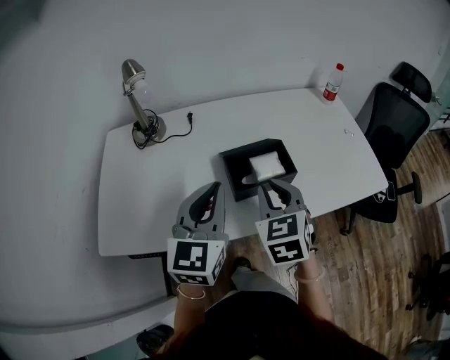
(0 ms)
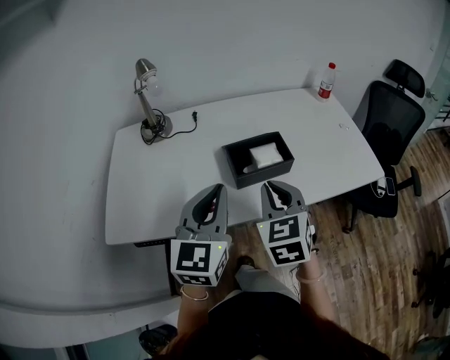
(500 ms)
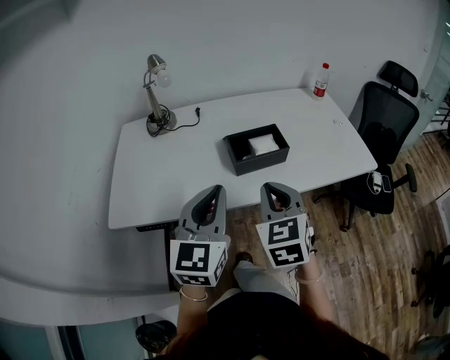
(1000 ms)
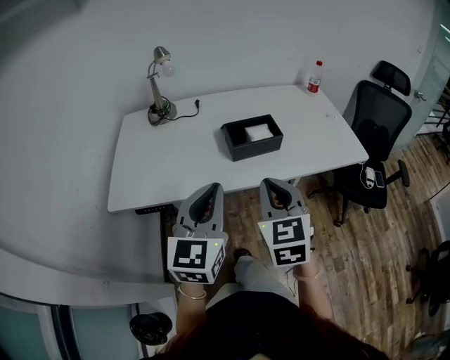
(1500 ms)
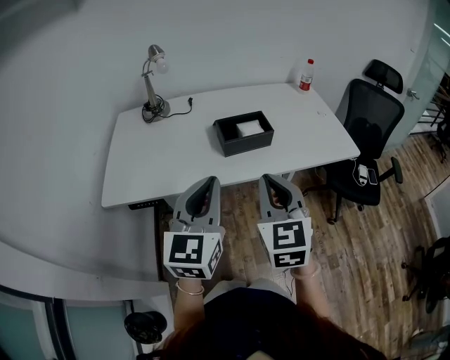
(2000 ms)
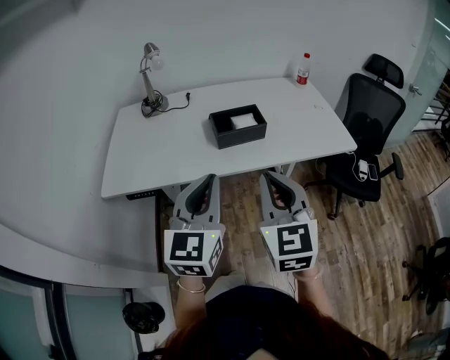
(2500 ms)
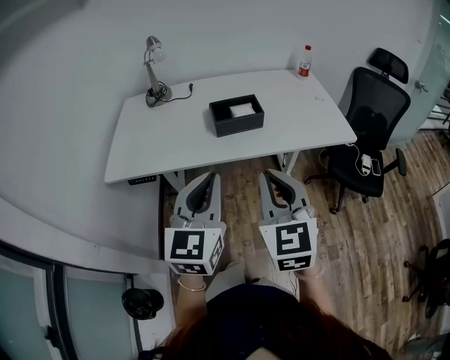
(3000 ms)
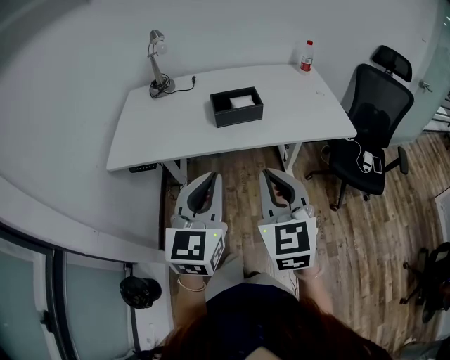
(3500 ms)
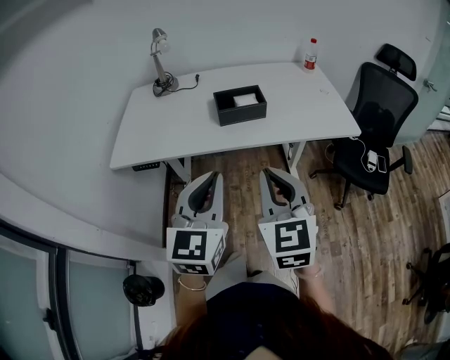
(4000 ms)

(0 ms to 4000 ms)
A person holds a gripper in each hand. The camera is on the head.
0 ms - 2000 ms: Both grippers travel together backward, some 20 cm.
2000 ms - 4000 ms: The grippers both shift backward and to the right by some 15 cm.

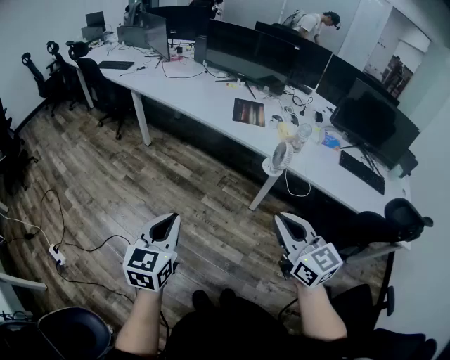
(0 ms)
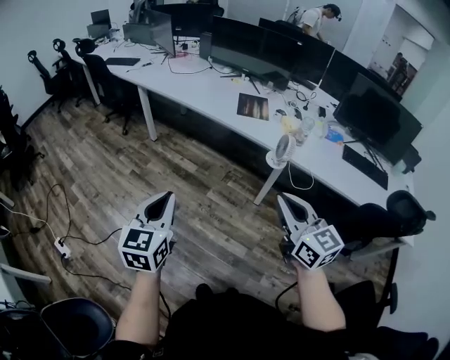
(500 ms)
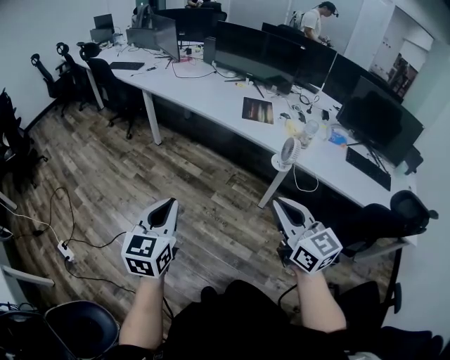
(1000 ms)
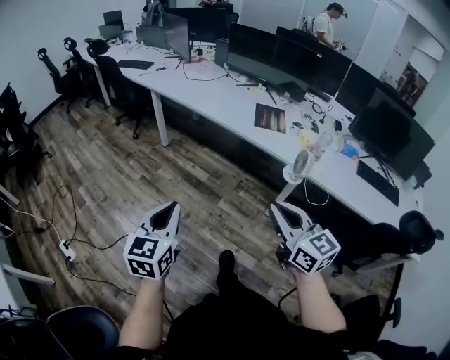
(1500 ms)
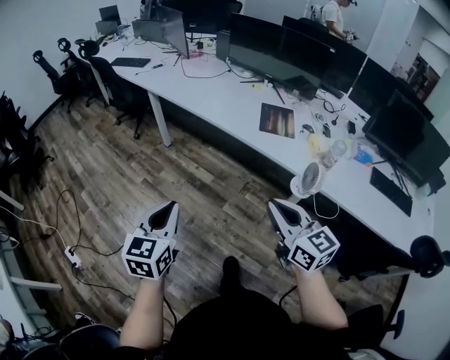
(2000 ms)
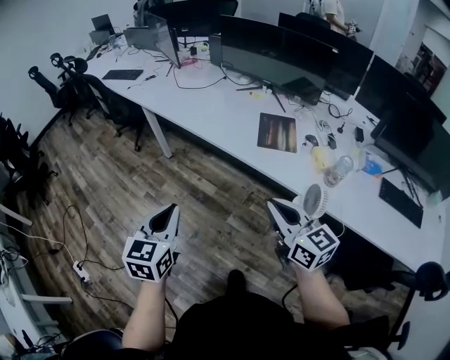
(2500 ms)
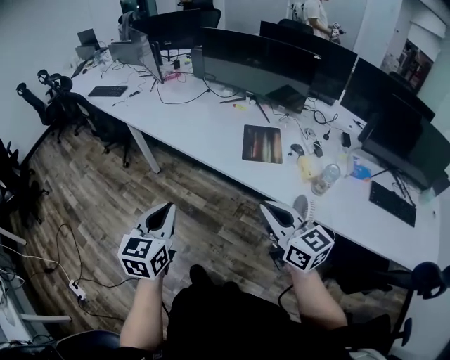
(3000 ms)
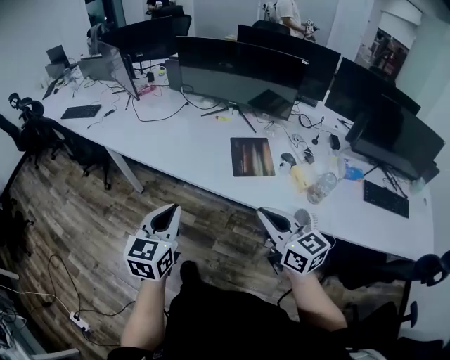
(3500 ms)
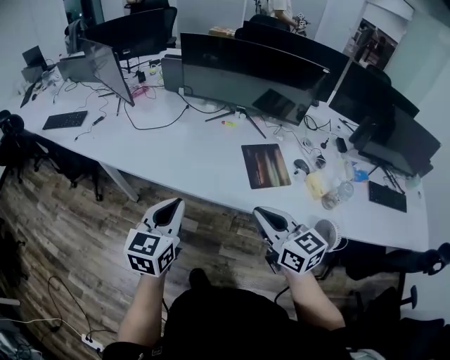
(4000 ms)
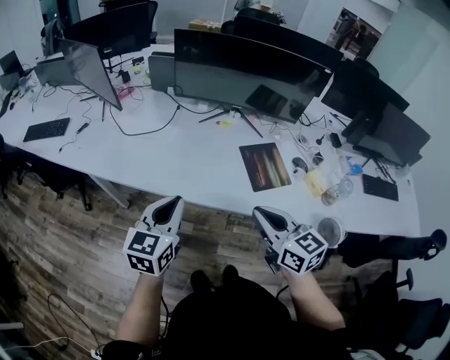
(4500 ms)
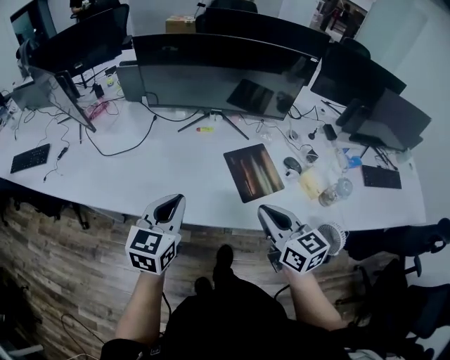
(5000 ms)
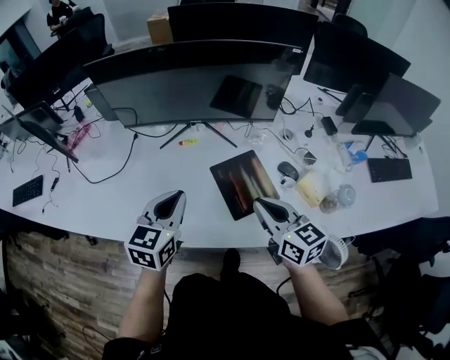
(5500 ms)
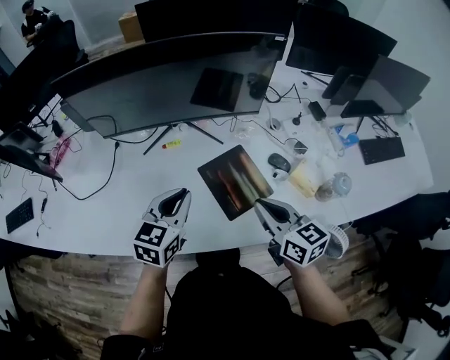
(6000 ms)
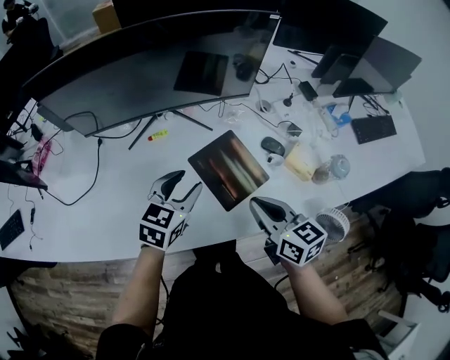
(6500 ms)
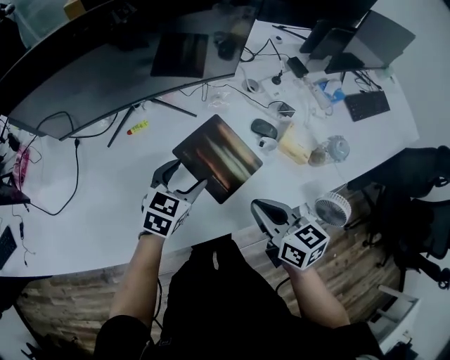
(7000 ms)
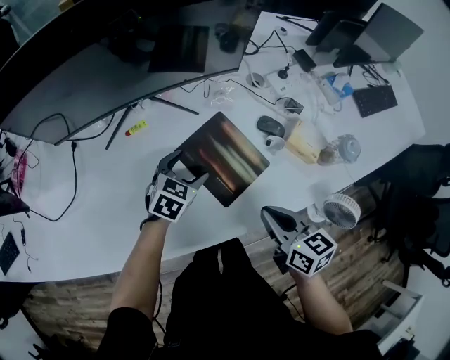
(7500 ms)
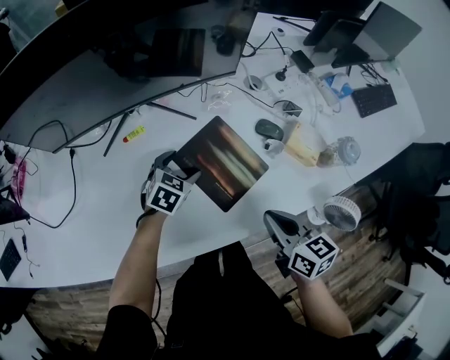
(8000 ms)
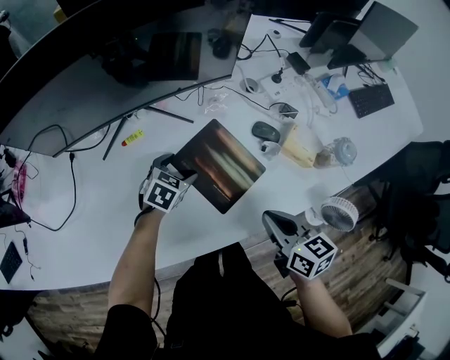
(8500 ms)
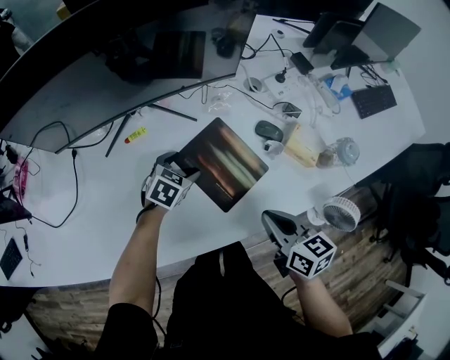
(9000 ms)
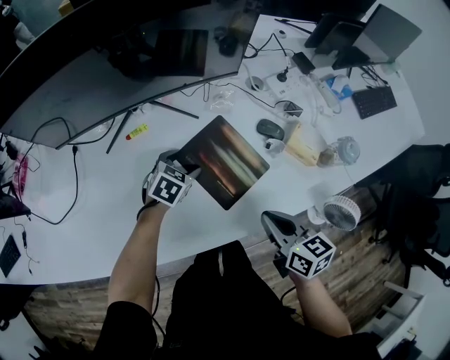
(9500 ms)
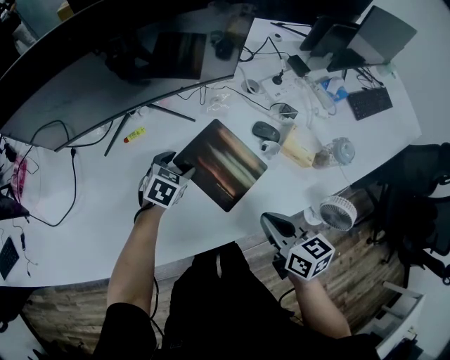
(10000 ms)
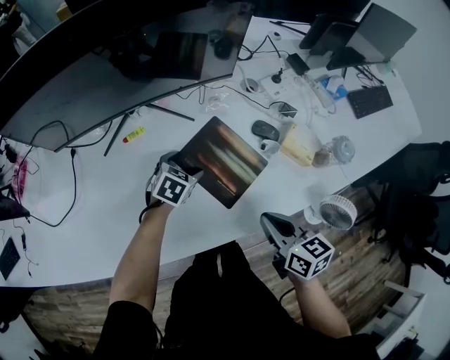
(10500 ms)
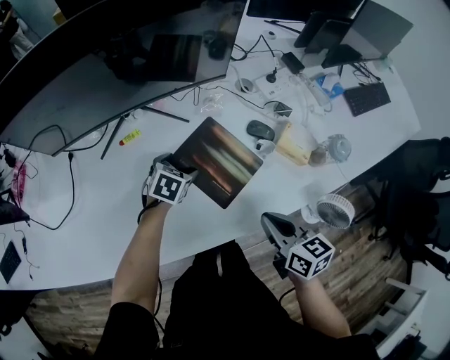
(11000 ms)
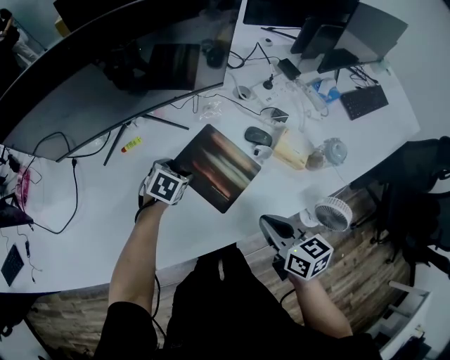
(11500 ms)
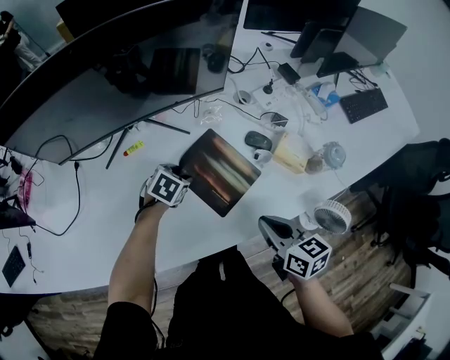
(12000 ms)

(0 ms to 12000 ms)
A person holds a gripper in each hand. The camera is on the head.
0 ms - 2000 ms: Both grippers move forward, some 20 cm.
2000 ms - 4000 ms: Both grippers travel together forward, about 40 cm. The left gripper swivels approximately 20 degrees.
4000 ms - 6000 ms: The grippers both shift forward and to the right by approximately 30 cm. The right gripper changes its angle by some 30 degrees. Meanwhile the left gripper swivels roughly 30 degrees.
6000 ms - 8000 ms: The right gripper goes approximately 10 cm downward, and turns by approximately 20 degrees. The left gripper travels downward and forward by roughly 25 cm, turns by approximately 30 degrees, and opens its fingers.
8000 ms - 10000 ms: Both grippers stay put.
10000 ms - 12000 ms: The grippers move only a little.

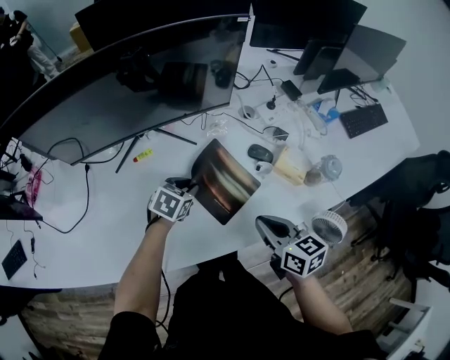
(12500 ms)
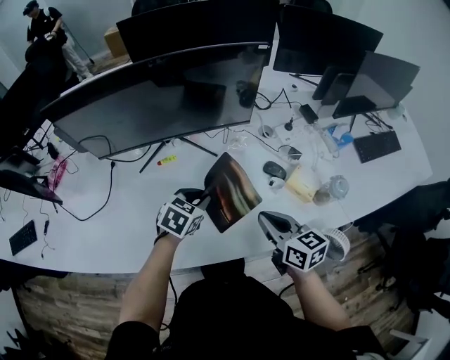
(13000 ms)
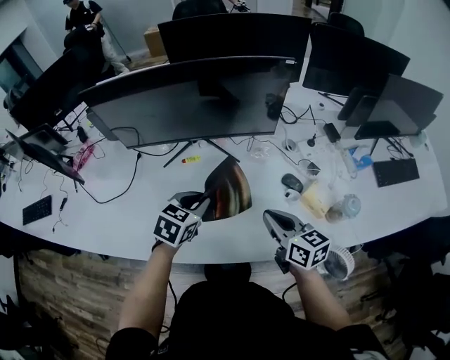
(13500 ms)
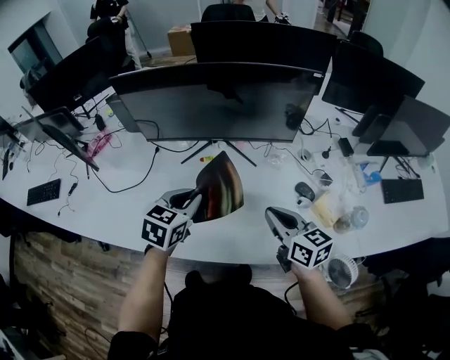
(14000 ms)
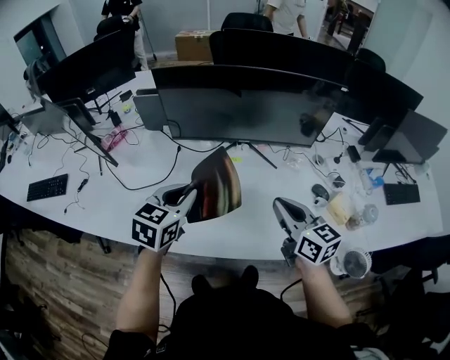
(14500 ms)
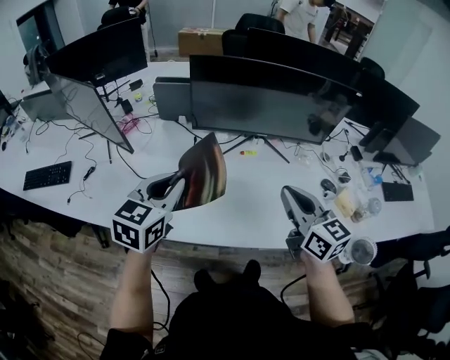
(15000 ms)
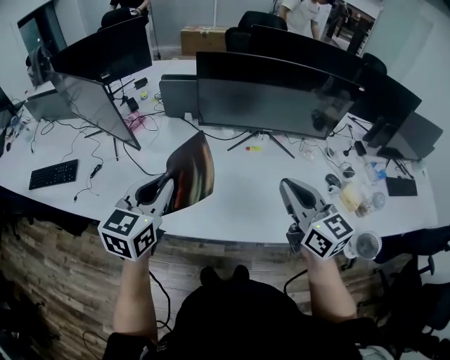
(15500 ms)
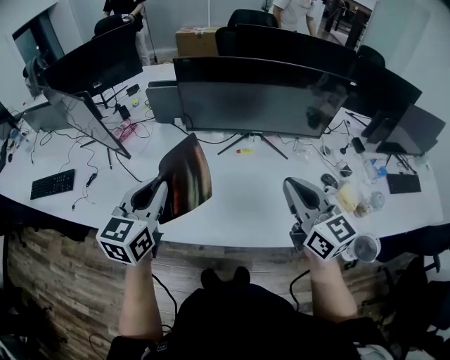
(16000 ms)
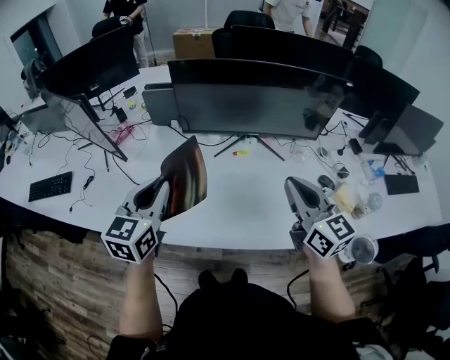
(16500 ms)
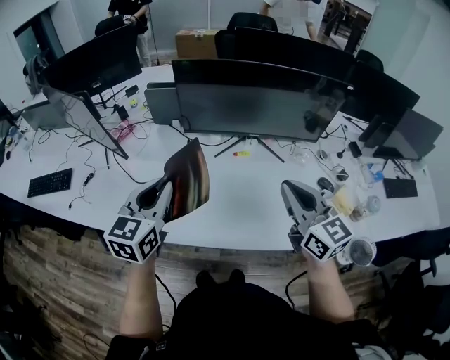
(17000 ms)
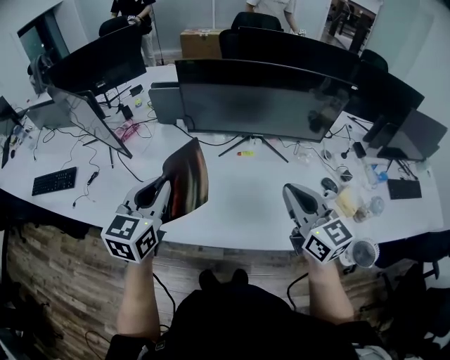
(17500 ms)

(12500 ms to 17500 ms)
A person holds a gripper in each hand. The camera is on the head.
12500 ms - 15000 ms: The left gripper changes place by about 50 cm, and tips its fingers upward by approximately 30 degrees; the right gripper ends up roughly 35 cm from where it was, and swivels approximately 30 degrees.
15000 ms - 17500 ms: The grippers stay close to where they were, moving slightly.

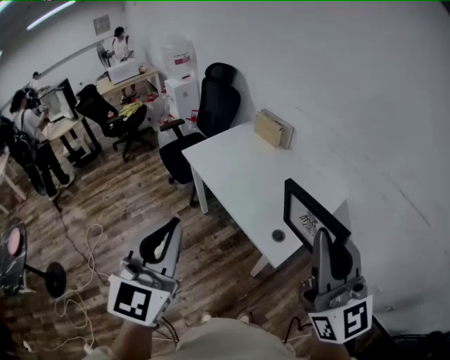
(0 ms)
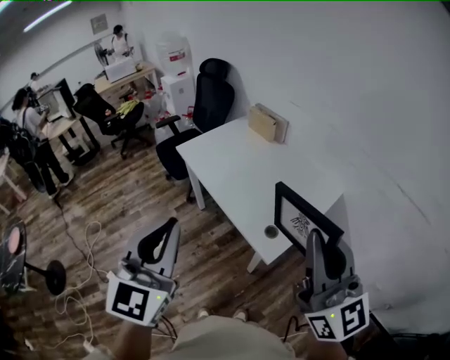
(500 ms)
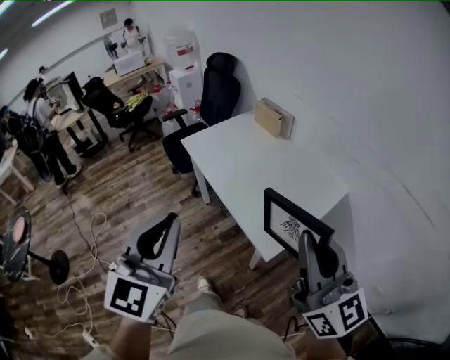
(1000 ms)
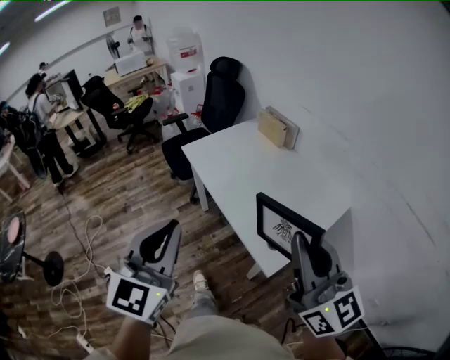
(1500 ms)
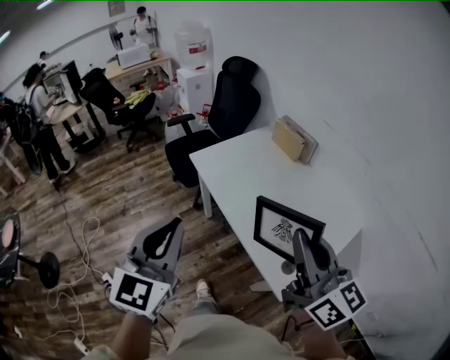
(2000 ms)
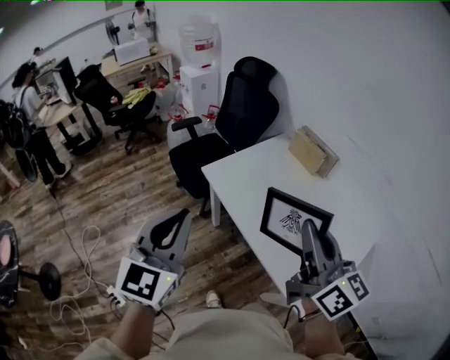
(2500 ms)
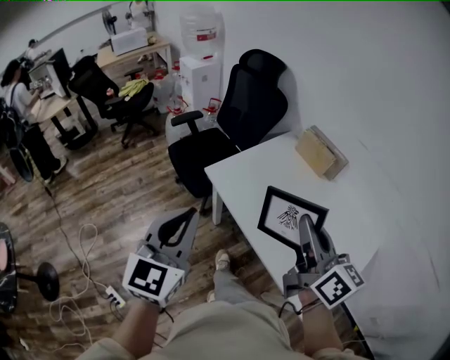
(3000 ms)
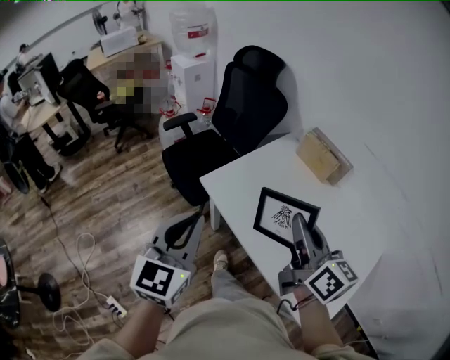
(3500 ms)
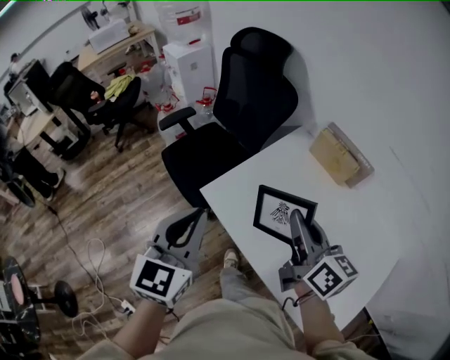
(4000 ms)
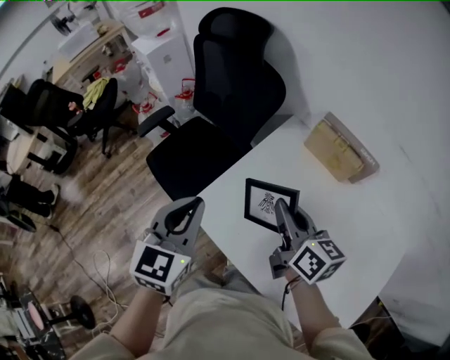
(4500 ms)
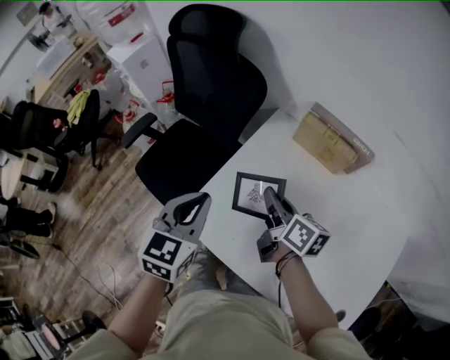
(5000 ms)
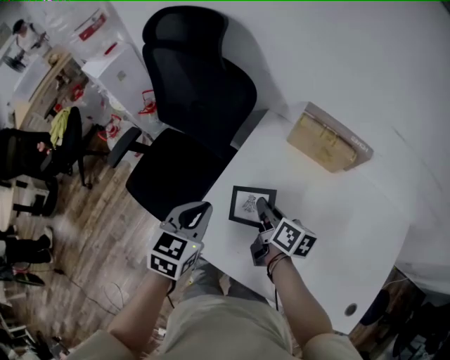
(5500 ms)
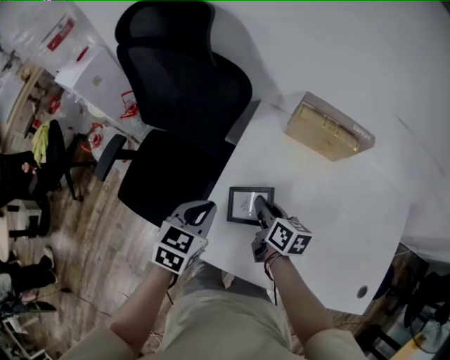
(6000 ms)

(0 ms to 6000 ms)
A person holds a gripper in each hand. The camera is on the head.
0 ms - 2000 ms: The two grippers go roughly 20 cm forward. The right gripper changes its angle by about 30 degrees.
2000 ms - 4000 ms: The pair of grippers is taken forward, about 40 cm. The right gripper swivels roughly 20 degrees.
4000 ms - 6000 ms: The left gripper moves about 35 cm, and changes its angle by roughly 50 degrees; the right gripper goes about 30 cm downward, and rotates roughly 40 degrees.
